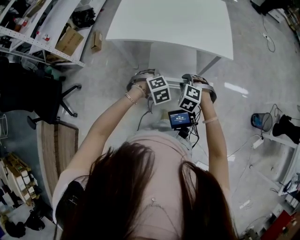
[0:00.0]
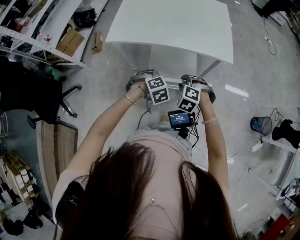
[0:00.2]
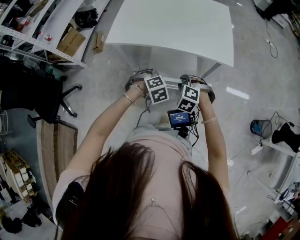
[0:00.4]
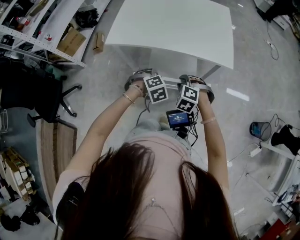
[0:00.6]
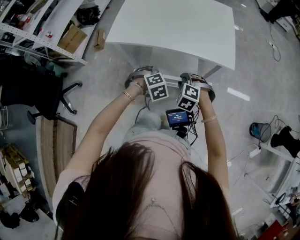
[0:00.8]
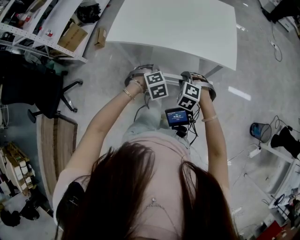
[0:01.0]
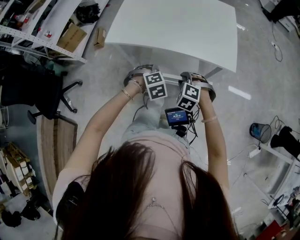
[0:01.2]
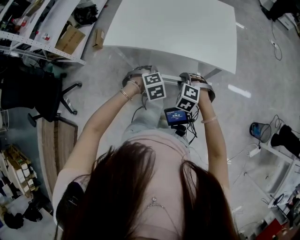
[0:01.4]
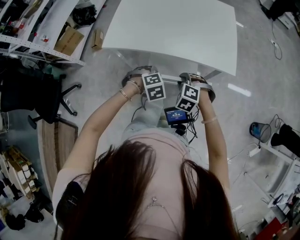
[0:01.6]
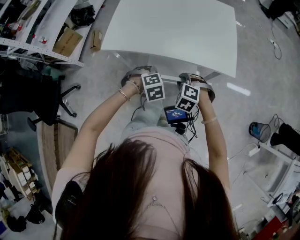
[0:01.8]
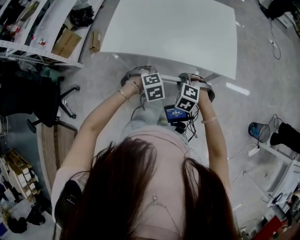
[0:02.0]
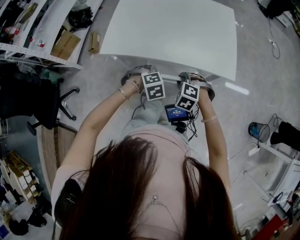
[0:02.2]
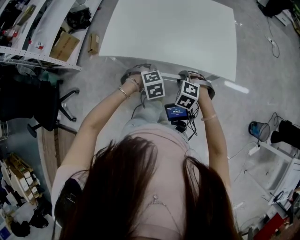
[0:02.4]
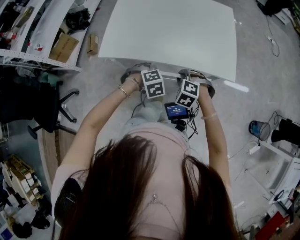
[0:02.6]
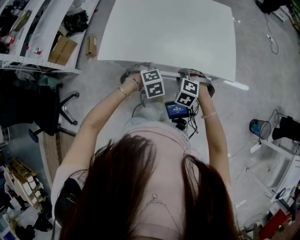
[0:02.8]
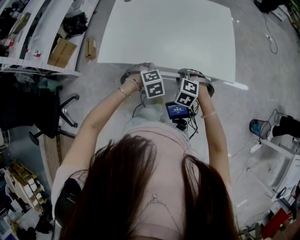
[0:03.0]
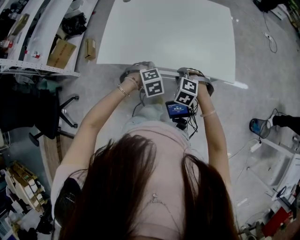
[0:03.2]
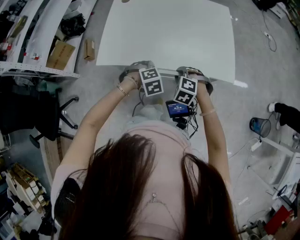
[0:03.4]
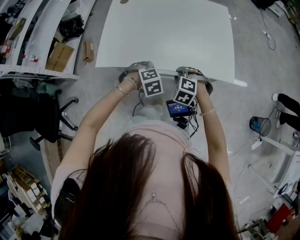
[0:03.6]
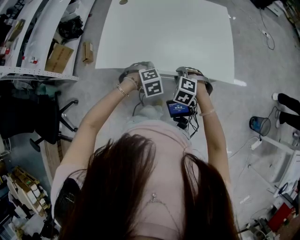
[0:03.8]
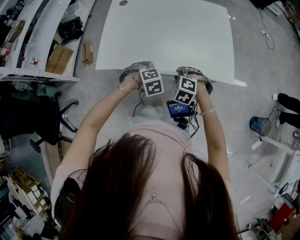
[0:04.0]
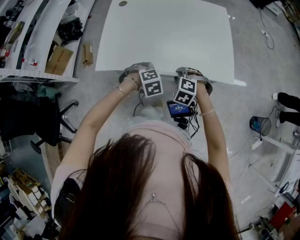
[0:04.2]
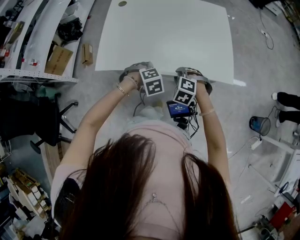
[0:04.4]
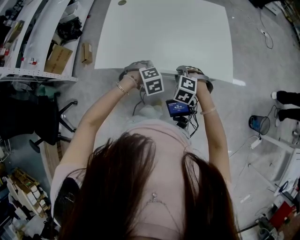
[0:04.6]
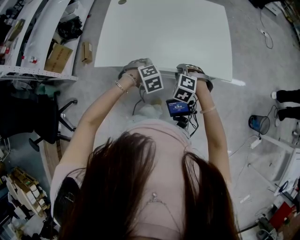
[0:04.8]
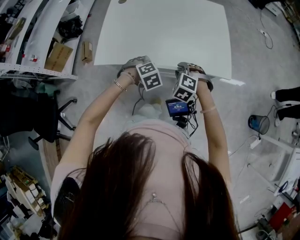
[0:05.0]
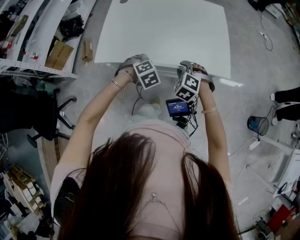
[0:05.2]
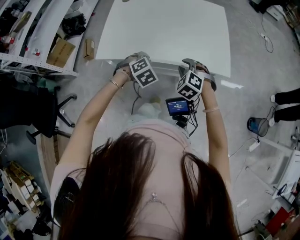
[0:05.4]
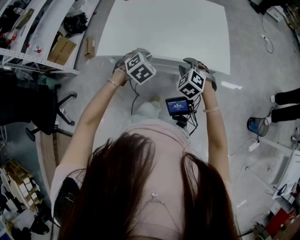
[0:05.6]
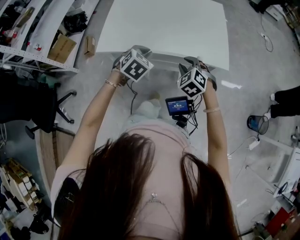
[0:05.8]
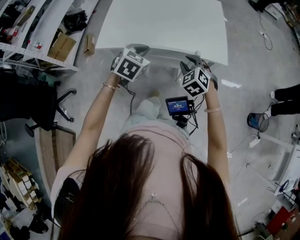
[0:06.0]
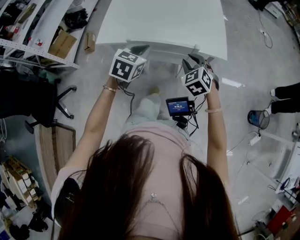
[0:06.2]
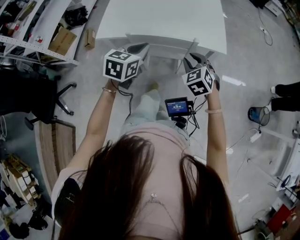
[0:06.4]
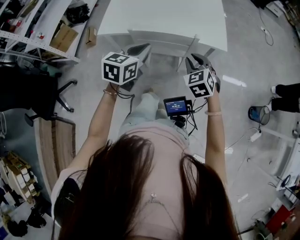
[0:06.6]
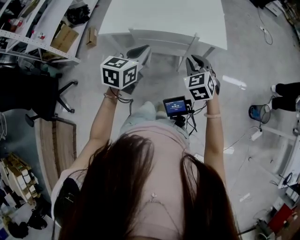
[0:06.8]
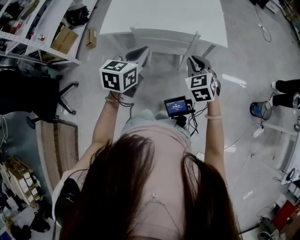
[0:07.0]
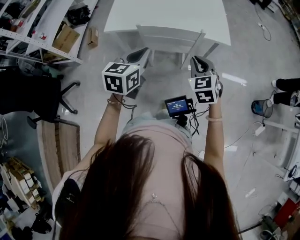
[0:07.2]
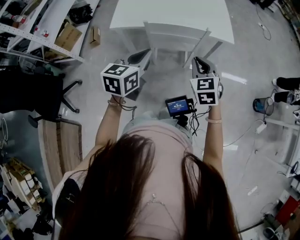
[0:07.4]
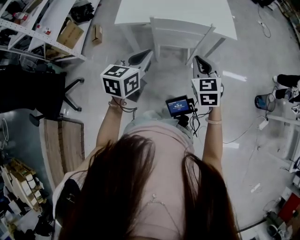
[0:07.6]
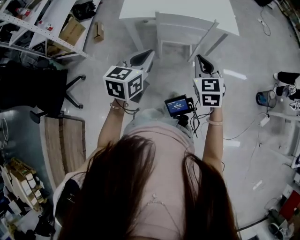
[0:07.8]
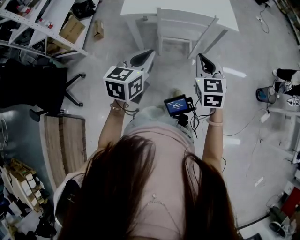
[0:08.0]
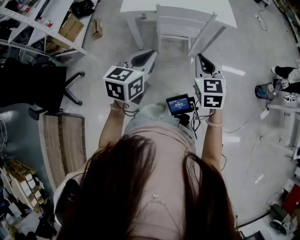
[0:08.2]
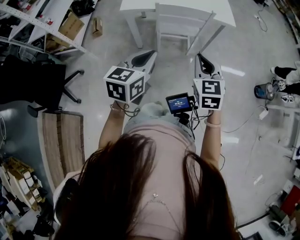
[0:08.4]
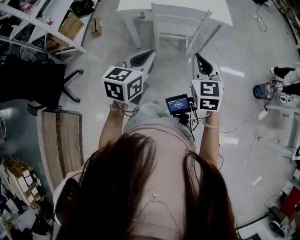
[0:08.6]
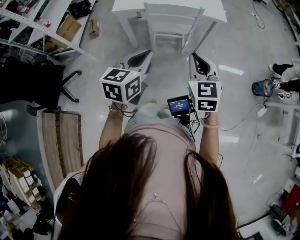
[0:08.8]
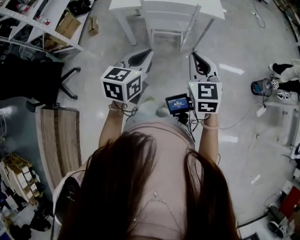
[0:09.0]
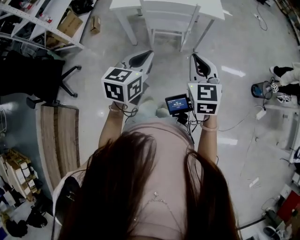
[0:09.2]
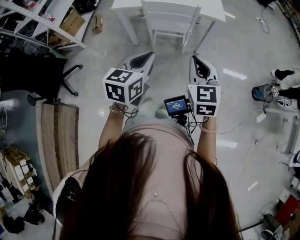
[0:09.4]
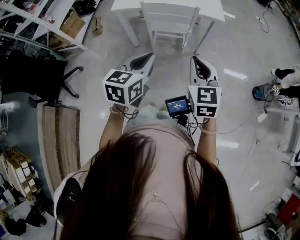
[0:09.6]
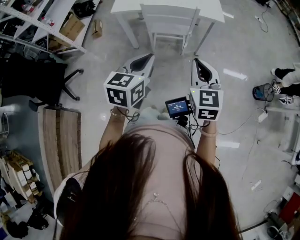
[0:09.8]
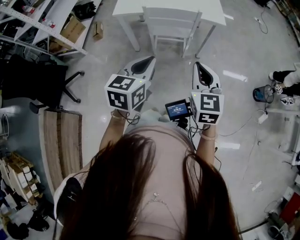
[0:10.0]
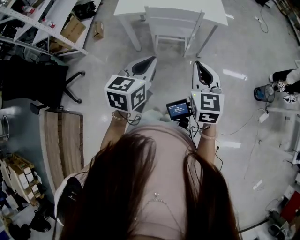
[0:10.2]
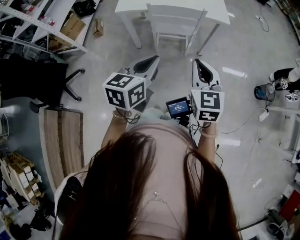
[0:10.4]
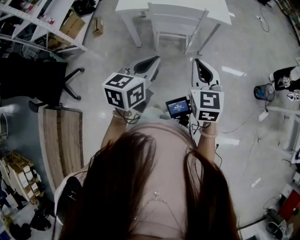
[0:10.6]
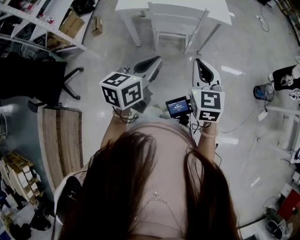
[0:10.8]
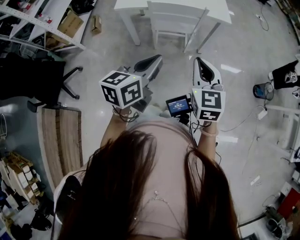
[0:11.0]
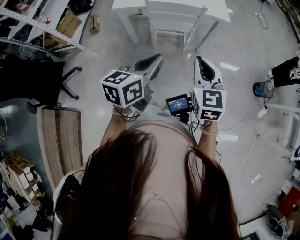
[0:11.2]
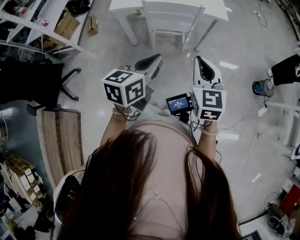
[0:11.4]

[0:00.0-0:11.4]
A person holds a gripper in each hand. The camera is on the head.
0:00.0 to 0:01.4: Both grippers move forward, about 10 cm.
0:01.4 to 0:02.8: Both grippers travel together forward, about 10 cm.
0:02.8 to 0:04.2: The grippers stay close to where they were, moving slightly.
0:04.2 to 0:05.6: Both grippers travel together upward, about 5 cm. The left gripper turns by about 30 degrees.
0:05.6 to 0:07.2: The two grippers go about 20 cm backward and upward. The right gripper swivels some 30 degrees; the left gripper twists approximately 40 degrees counterclockwise, seen from behind.
0:07.2 to 0:08.6: Both grippers move backward, roughly 20 cm.
0:08.6 to 0:10.0: Both grippers move to the right, approximately 10 cm.
0:10.0 to 0:11.4: The grippers move only a little.

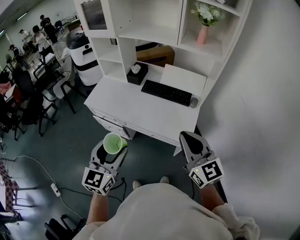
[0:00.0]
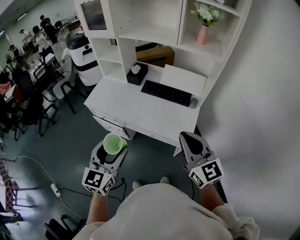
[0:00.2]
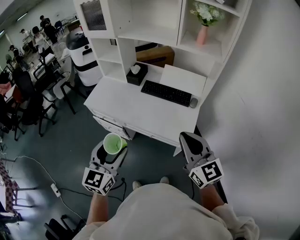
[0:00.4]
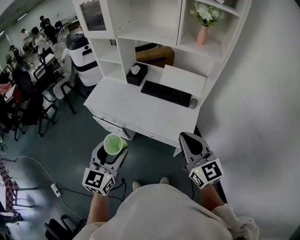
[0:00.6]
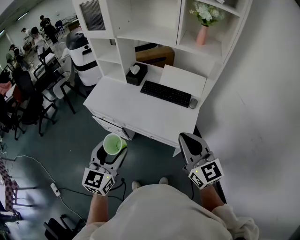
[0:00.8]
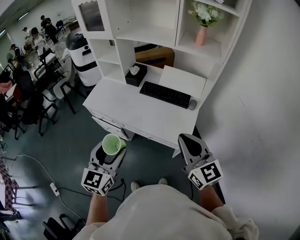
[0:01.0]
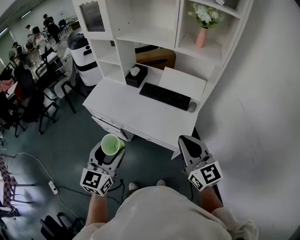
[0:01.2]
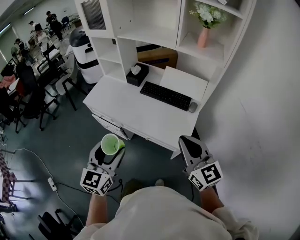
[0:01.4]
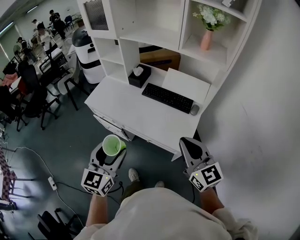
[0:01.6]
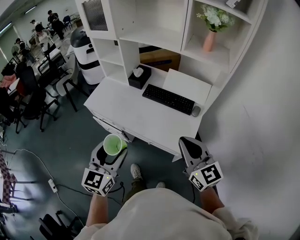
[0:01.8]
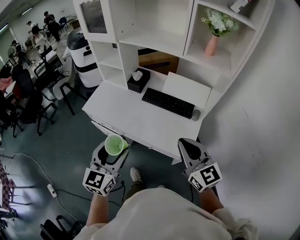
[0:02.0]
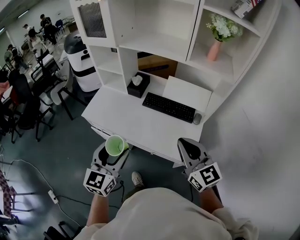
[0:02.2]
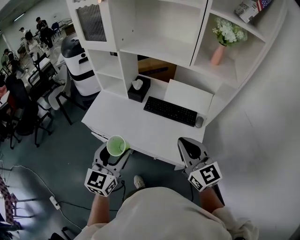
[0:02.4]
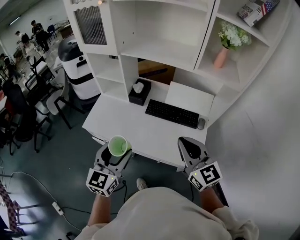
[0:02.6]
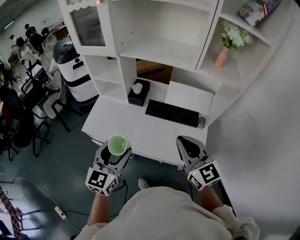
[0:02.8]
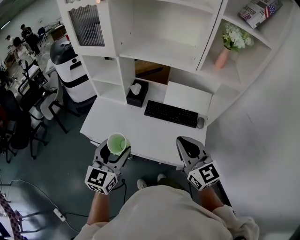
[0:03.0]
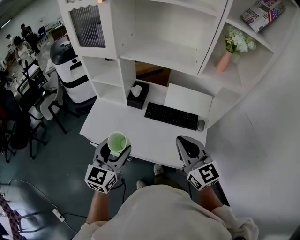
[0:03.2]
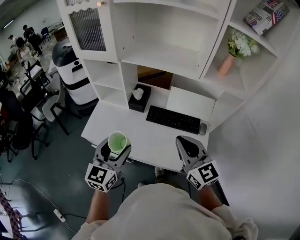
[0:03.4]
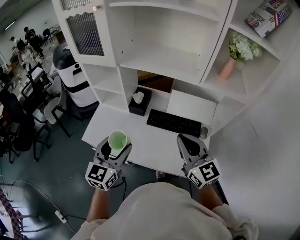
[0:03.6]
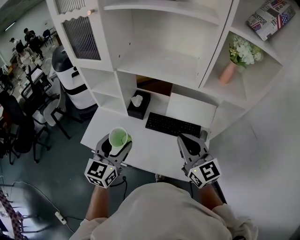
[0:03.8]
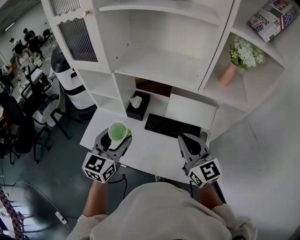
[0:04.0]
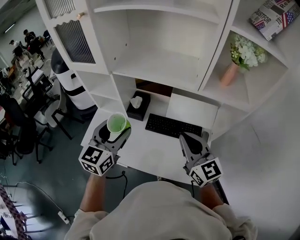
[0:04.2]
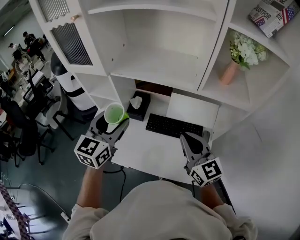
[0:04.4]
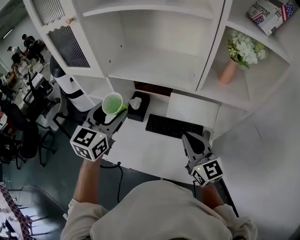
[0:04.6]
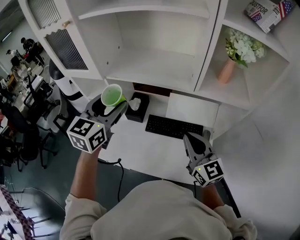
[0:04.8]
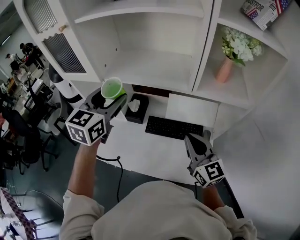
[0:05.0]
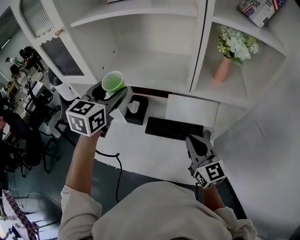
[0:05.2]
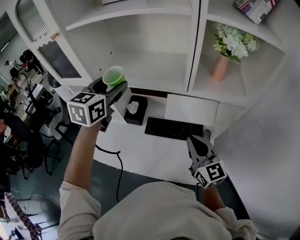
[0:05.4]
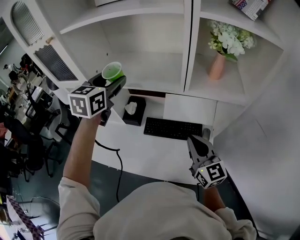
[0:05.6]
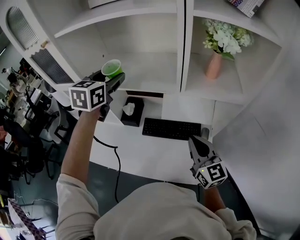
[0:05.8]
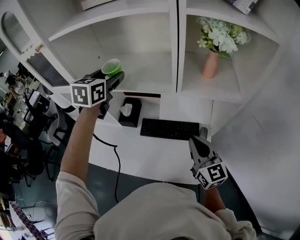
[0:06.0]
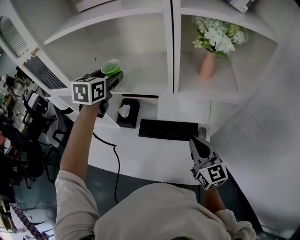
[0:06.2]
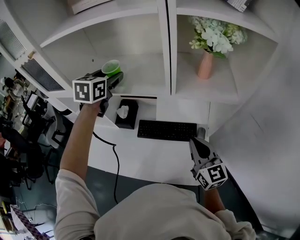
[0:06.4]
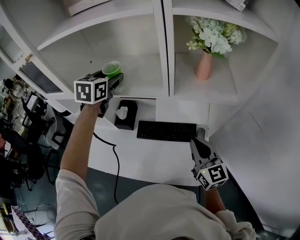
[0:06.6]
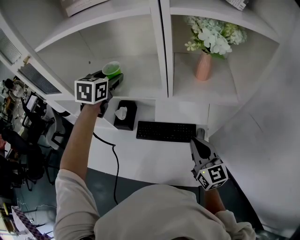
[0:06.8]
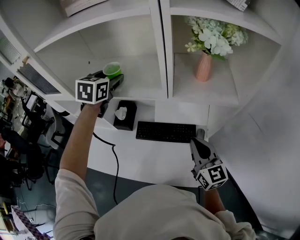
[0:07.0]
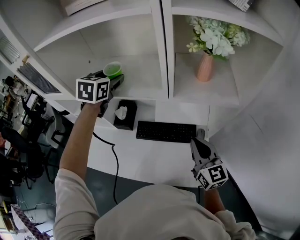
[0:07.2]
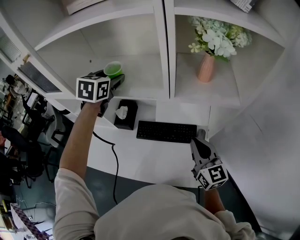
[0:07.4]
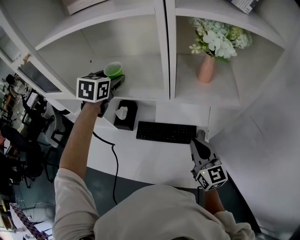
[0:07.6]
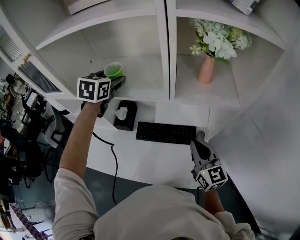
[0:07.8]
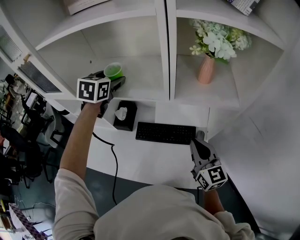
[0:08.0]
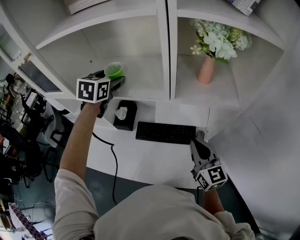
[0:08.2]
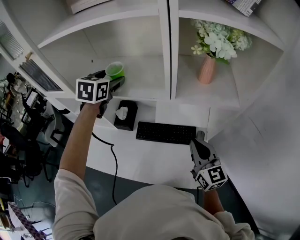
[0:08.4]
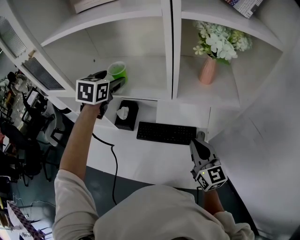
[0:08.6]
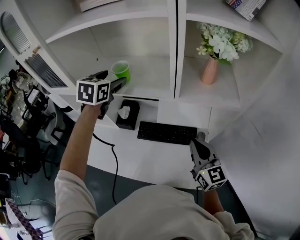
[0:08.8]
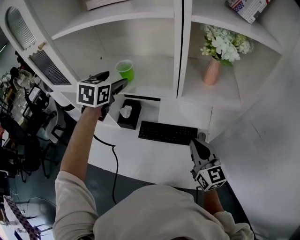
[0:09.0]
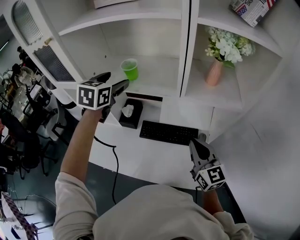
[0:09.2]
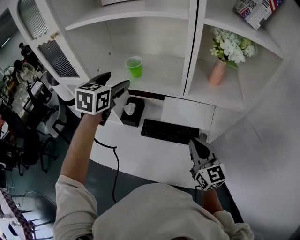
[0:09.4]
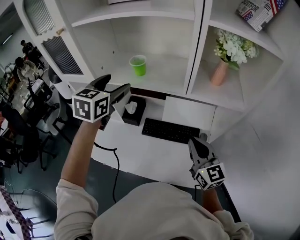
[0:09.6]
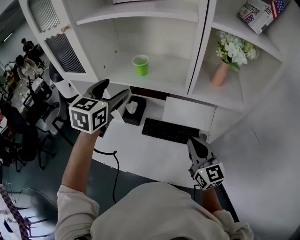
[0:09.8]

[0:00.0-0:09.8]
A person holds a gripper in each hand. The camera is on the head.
0:00.0 to 0:01.4: The right gripper moves roughly 5 cm.
0:01.4 to 0:02.8: Both grippers move forward and to the left, some 25 cm.
0:02.8 to 0:04.2: The two grippers go about 15 cm forward.
0:04.2 to 0:05.6: The left gripper is displaced forward and upward by roughly 20 cm. The right gripper shifts about 10 cm to the right.
0:05.6 to 0:07.0: The left gripper heads forward, downward and to the right, covering about 10 cm. The right gripper shifts some 5 cm to the right.
0:07.0 to 0:08.4: The grippers make only small movements.
0:08.4 to 0:09.8: The right gripper moves to the left, some 5 cm, while the left gripper is displaced backward by about 15 cm.

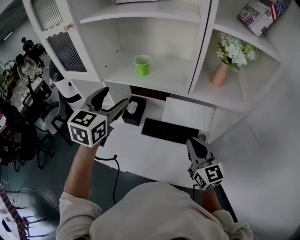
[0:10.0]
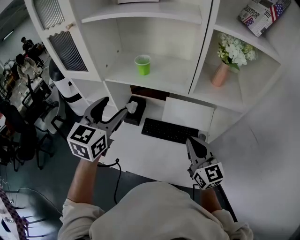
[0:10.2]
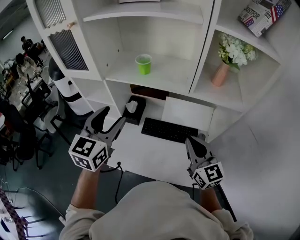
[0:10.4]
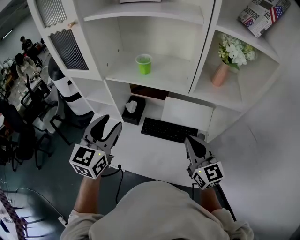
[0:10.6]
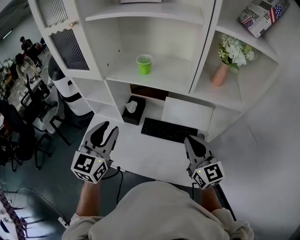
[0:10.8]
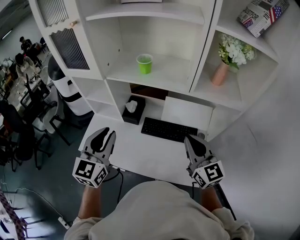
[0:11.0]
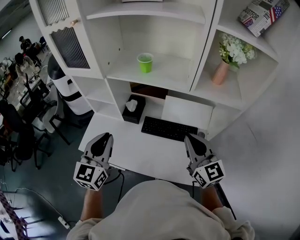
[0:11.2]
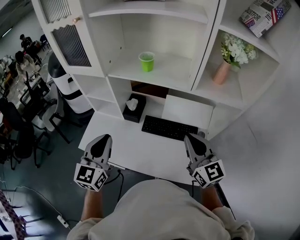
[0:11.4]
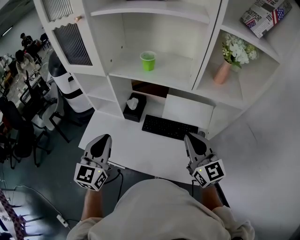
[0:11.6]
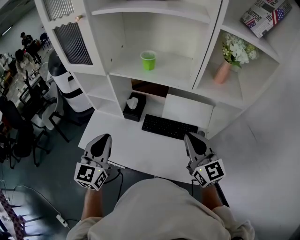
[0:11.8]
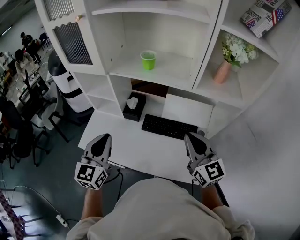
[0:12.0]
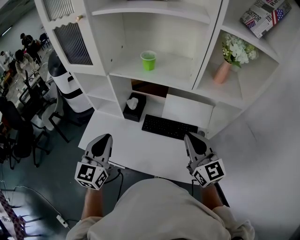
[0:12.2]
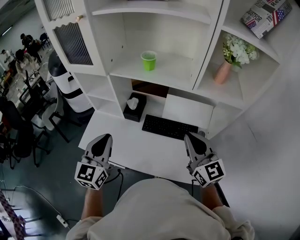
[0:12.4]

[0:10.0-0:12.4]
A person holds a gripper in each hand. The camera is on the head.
0:10.0 to 0:11.2: The left gripper goes approximately 15 cm backward, downward and to the left, and closes its fingers.
0:11.2 to 0:12.4: There are only small adjustments of the grippers.
